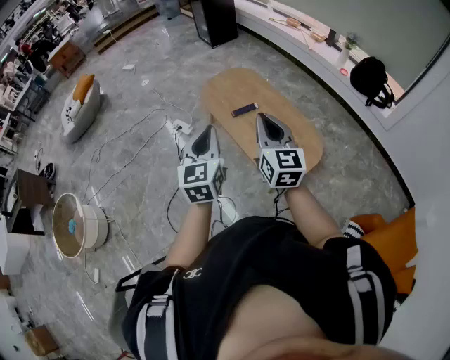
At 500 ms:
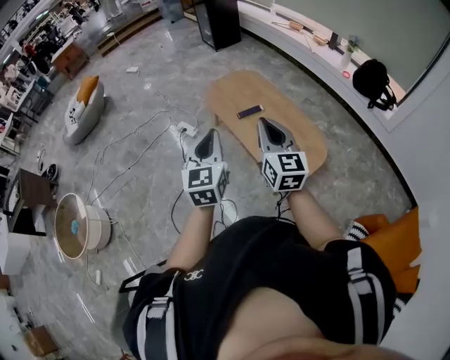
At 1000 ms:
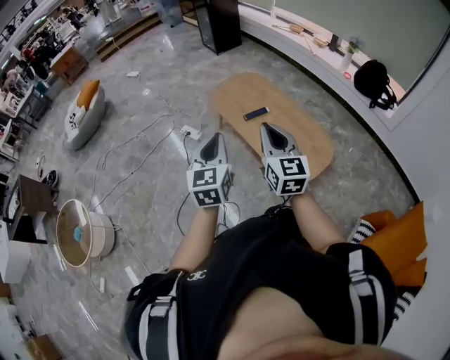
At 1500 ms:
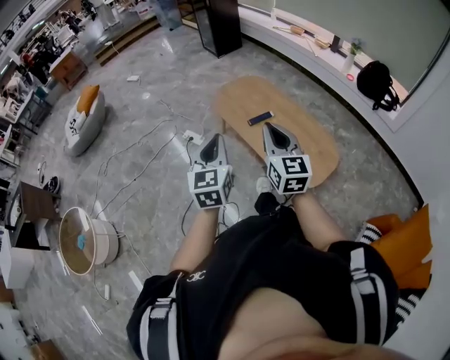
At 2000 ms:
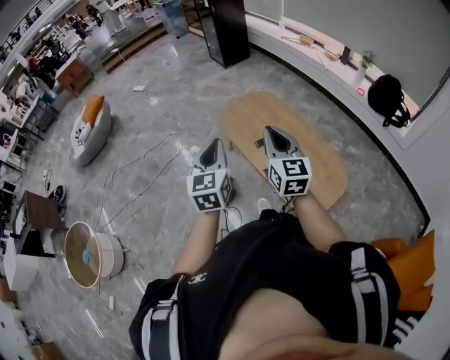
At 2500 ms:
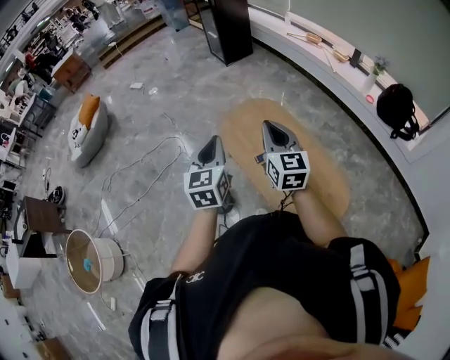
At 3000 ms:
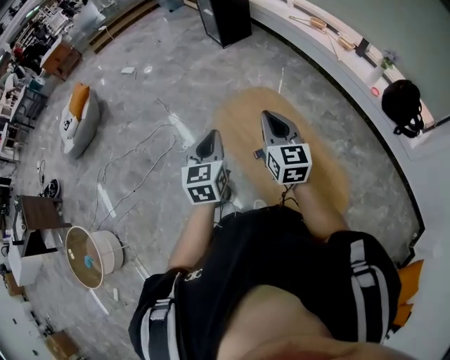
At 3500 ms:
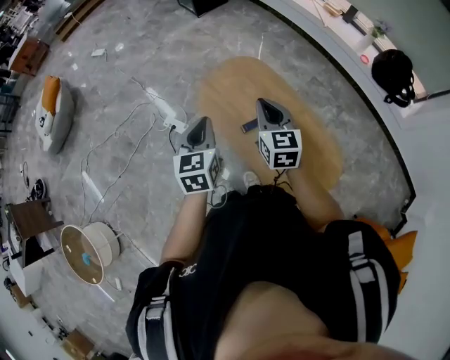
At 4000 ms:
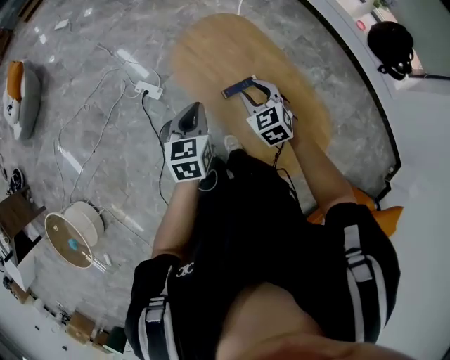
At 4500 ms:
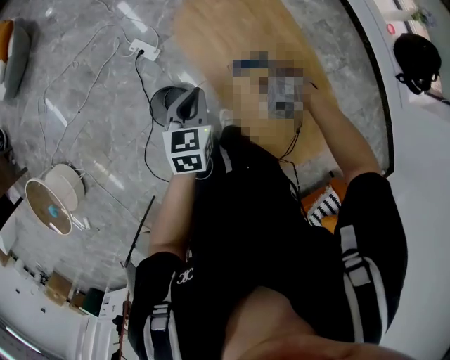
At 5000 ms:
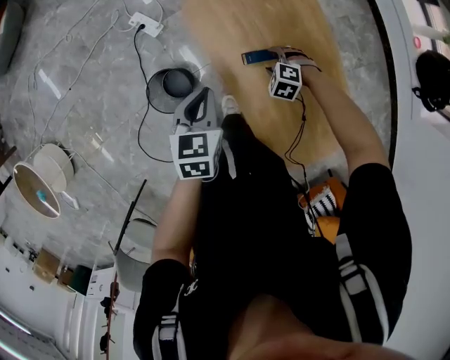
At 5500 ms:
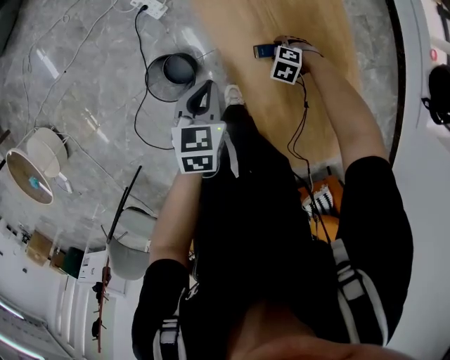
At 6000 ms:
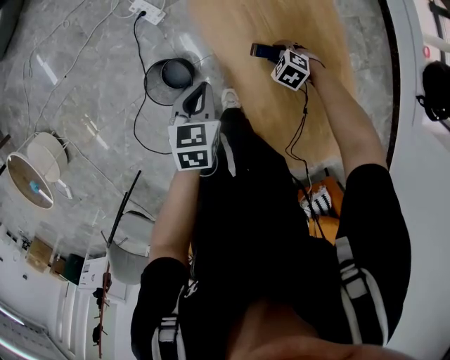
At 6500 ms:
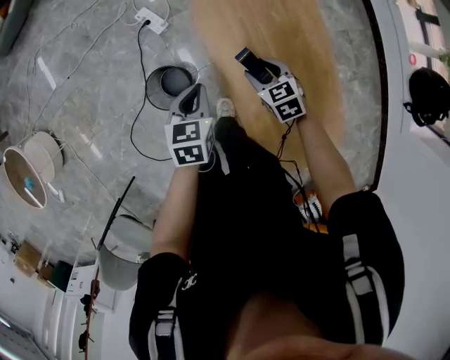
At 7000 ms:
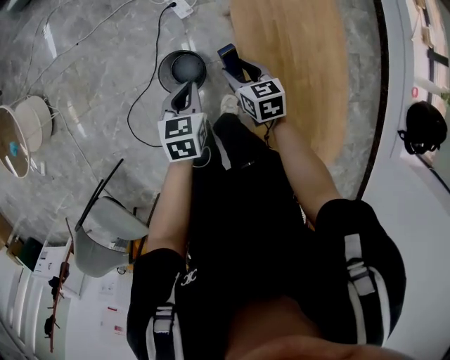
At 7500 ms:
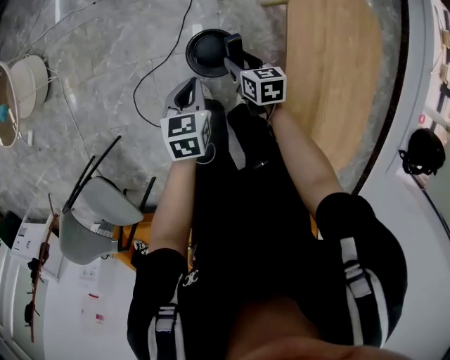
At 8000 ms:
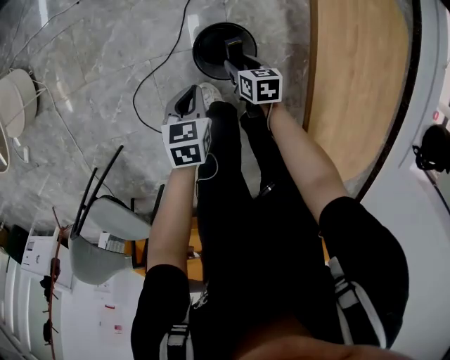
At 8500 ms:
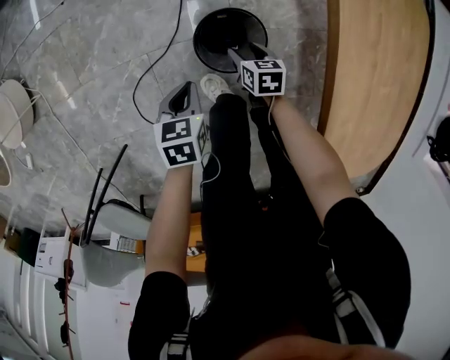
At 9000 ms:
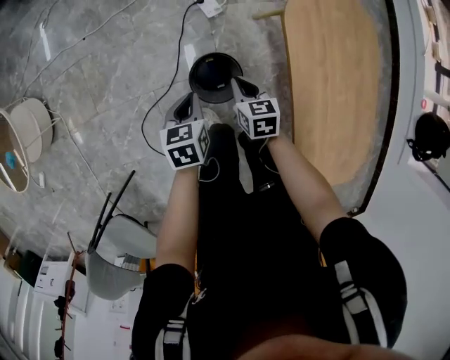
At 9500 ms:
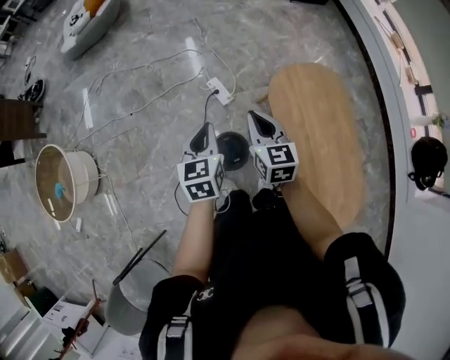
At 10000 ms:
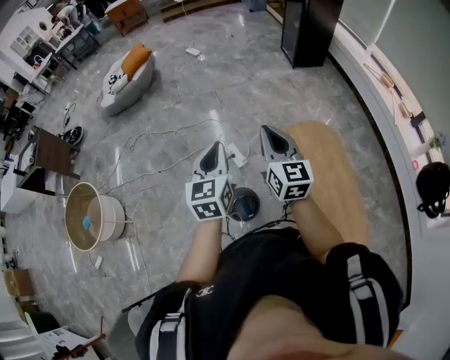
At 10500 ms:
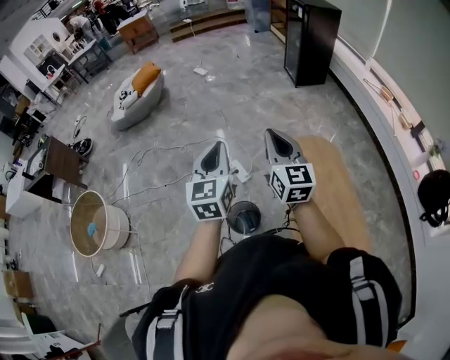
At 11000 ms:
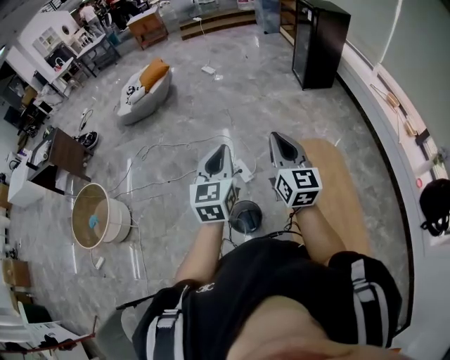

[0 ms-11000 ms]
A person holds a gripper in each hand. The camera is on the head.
0 ms to 2000 ms: Both grippers travel together forward and to the left, some 15 cm.
2000 ms to 3500 ms: The two grippers go some 25 cm forward.
3500 ms to 5500 ms: The right gripper shifts about 50 cm downward, tilts its fingers approximately 70 degrees downward, and opens up. The left gripper is displaced downward by roughly 30 cm, and turns by roughly 30 degrees.
5500 ms to 7500 ms: The left gripper shifts by about 30 cm, and rotates roughly 30 degrees. Meanwhile the right gripper ends up approximately 40 cm from where it was, and angles its fingers upward, by about 40 degrees.
7500 ms to 9000 ms: The right gripper travels downward and back again, approximately 25 cm each way, and closes its fingers, while the left gripper travels downward and back again, approximately 20 cm each way.
9000 ms to 11000 ms: The grippers both shift upward by approximately 60 cm. The right gripper tips its fingers upward by approximately 50 degrees. The left gripper points its fingers some 40 degrees further upward.

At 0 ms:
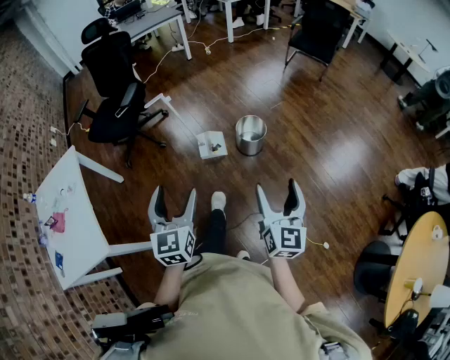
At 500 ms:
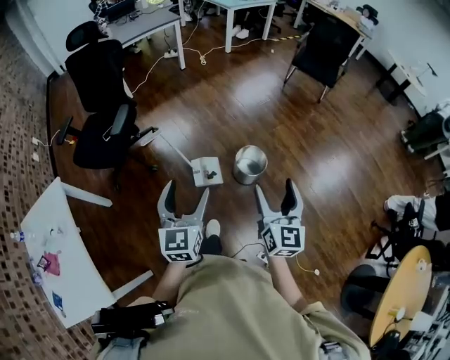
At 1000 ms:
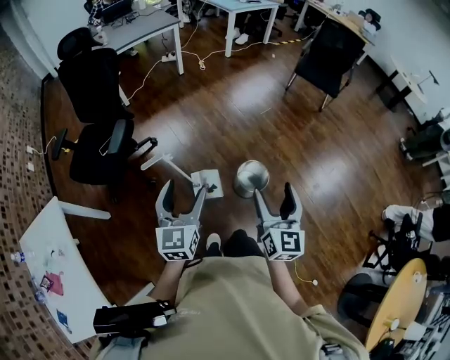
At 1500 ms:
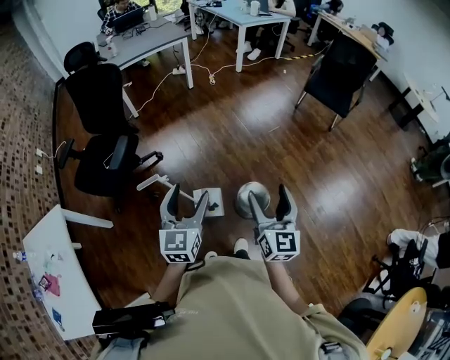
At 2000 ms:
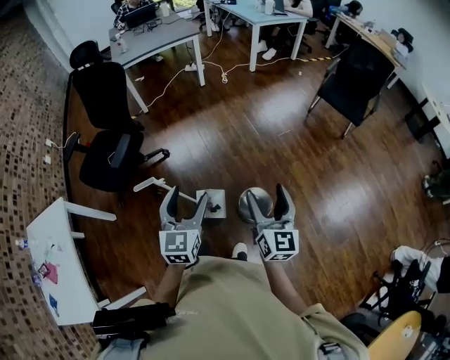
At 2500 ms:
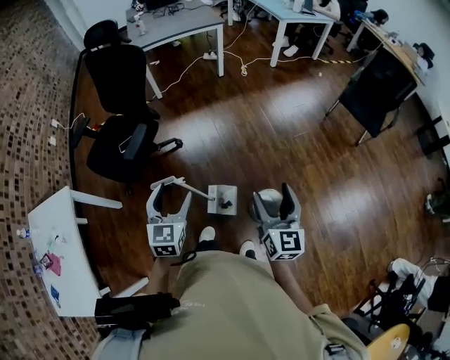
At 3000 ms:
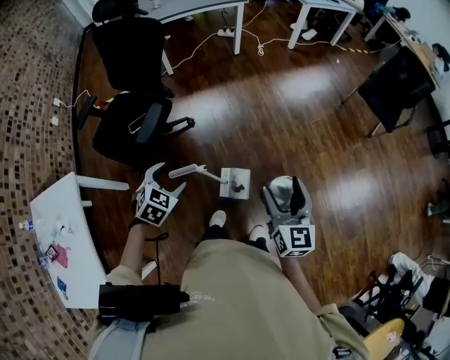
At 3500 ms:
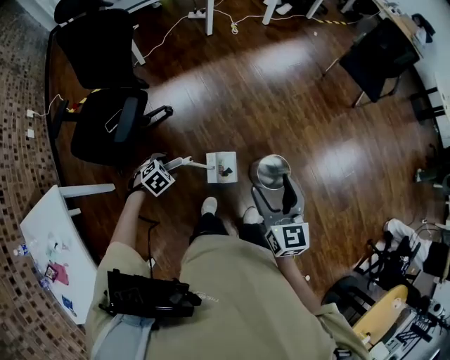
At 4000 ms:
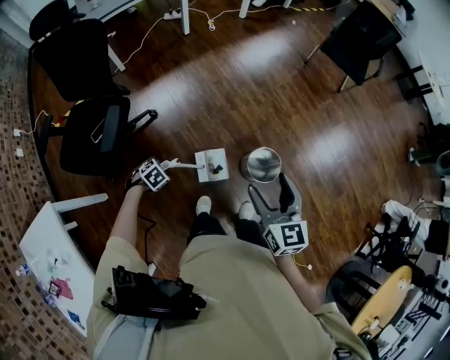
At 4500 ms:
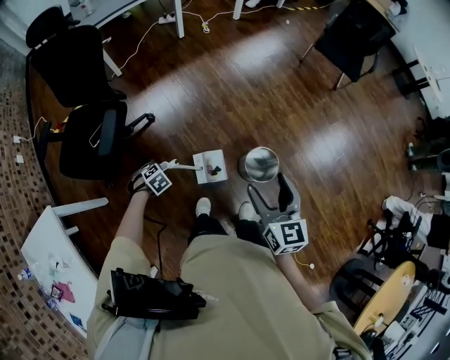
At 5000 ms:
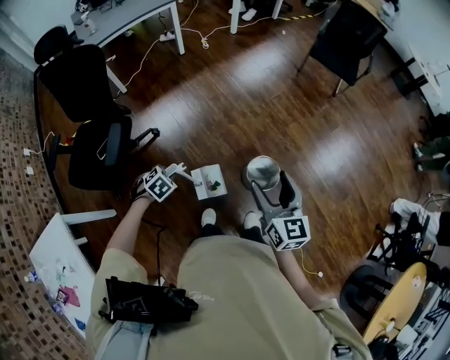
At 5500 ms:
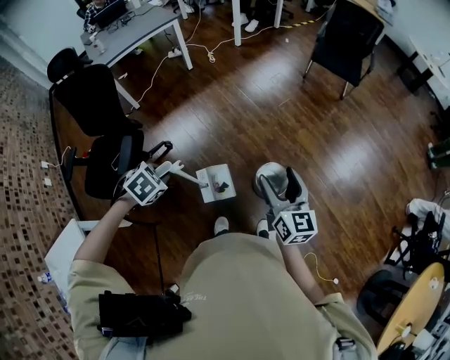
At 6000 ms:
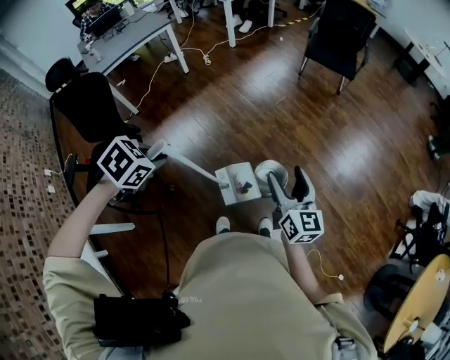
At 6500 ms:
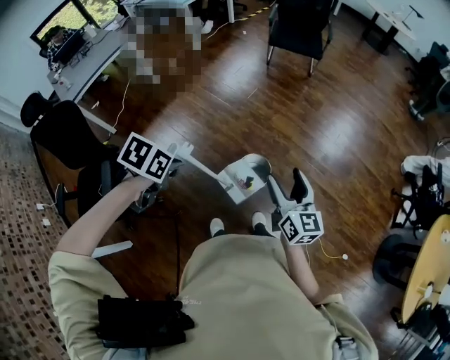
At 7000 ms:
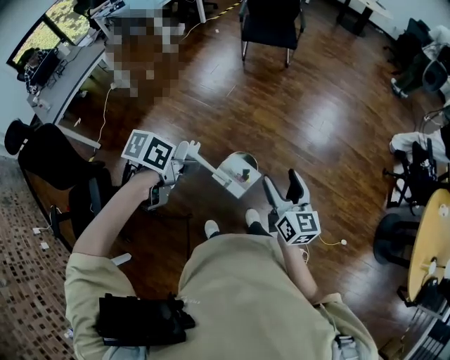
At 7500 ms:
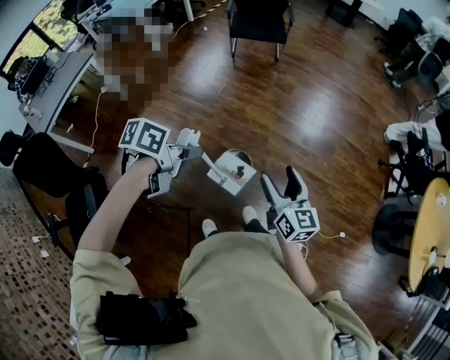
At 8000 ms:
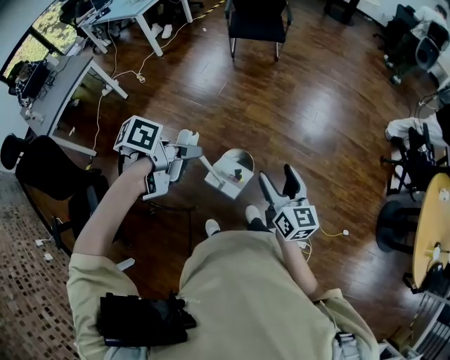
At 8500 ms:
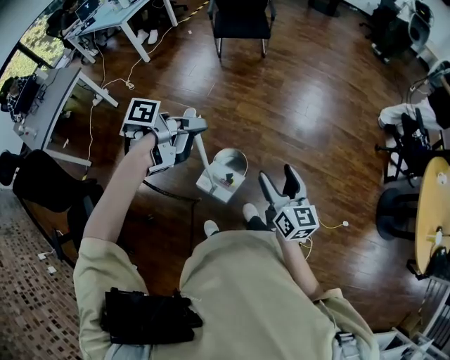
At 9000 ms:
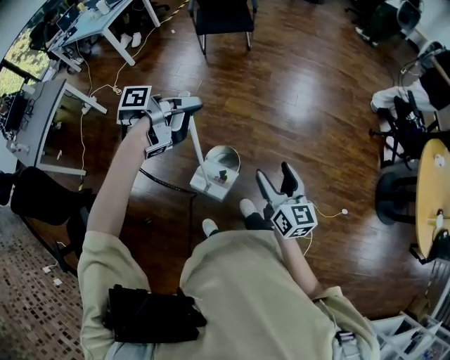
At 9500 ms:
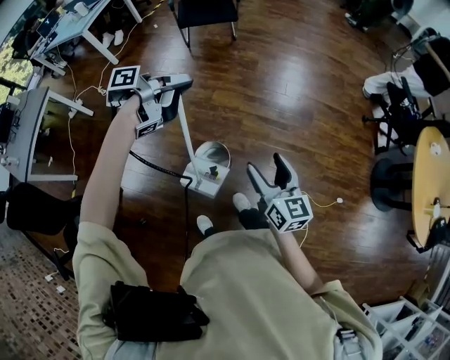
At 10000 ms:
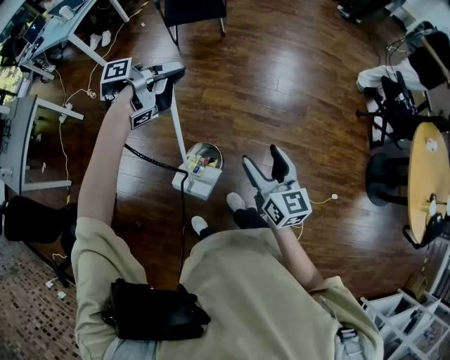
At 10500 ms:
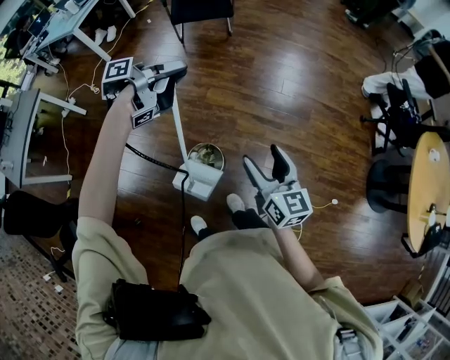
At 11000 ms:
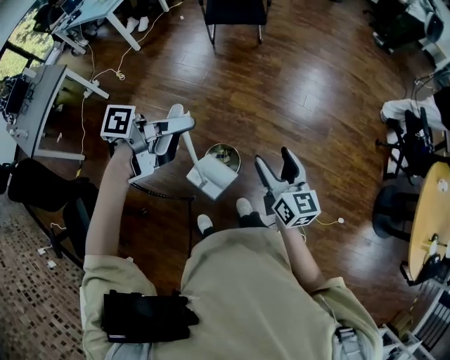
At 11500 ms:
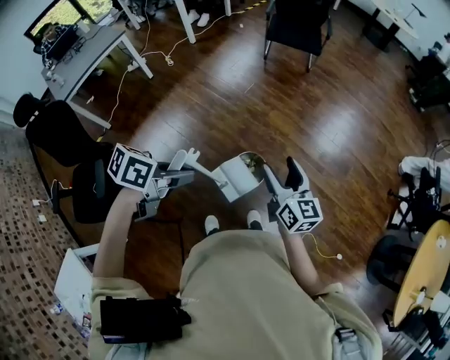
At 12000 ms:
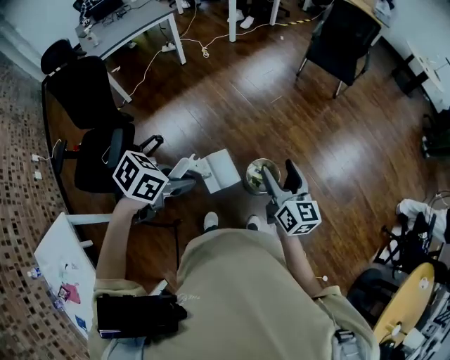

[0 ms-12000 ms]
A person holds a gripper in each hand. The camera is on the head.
0 ms to 2000 ms: The two grippers travel together, forward, approximately 50 cm.
2000 ms to 4000 ms: The left gripper goes approximately 40 cm downward, and points its fingers approximately 70 degrees further downward. The right gripper shifts by about 15 cm.
4000 ms to 6000 ms: The right gripper ends up approximately 15 cm from where it was, and changes its angle by about 20 degrees. Meanwhile the left gripper shifts approximately 40 cm upward, and closes up.
6000 ms to 8000 ms: The left gripper ends up roughly 25 cm from where it was, and angles its fingers upward, by some 40 degrees; the right gripper ends up approximately 15 cm from where it was.
8000 ms to 10000 ms: The left gripper travels forward by roughly 30 cm, while the right gripper goes about 10 cm forward and to the right.
10000 ms to 12000 ms: The left gripper travels backward by some 50 cm, and angles its fingers downward, by about 30 degrees. Meanwhile the right gripper moves to the left and backward, about 25 cm, and changes its angle by roughly 30 degrees.

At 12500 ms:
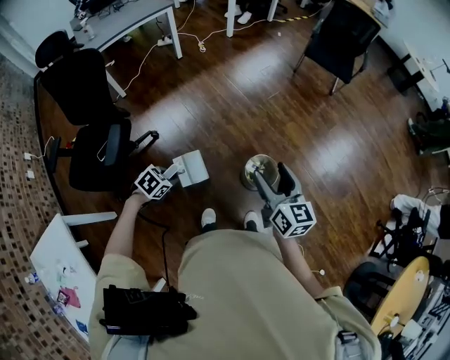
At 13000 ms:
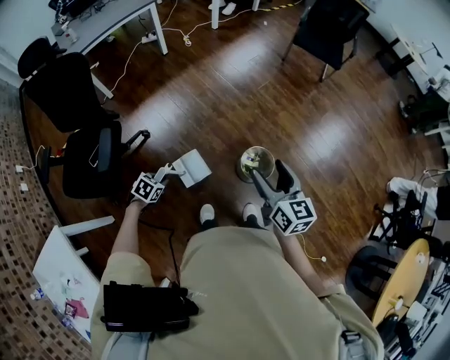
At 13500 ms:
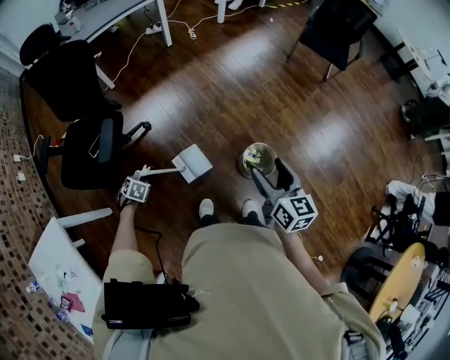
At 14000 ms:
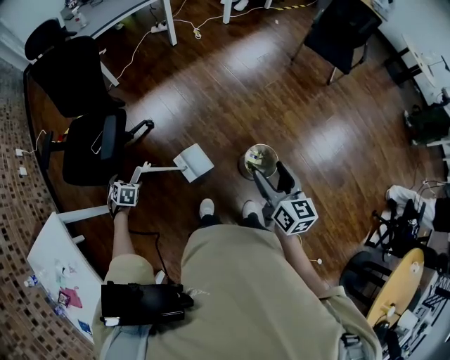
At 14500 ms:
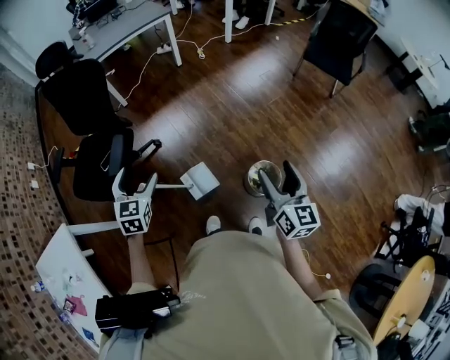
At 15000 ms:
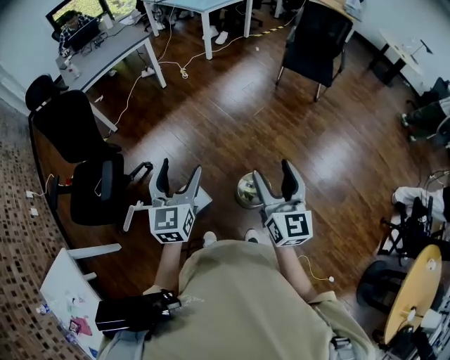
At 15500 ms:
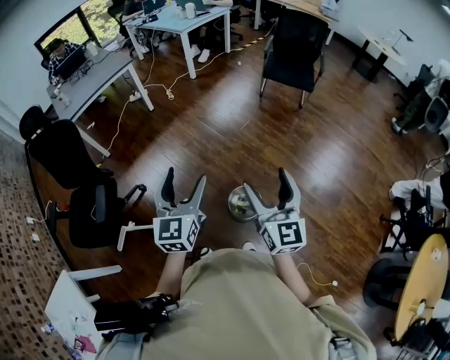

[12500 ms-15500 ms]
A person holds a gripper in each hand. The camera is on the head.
12500 ms to 14000 ms: The left gripper ends up approximately 25 cm from where it was, changes its angle by about 40 degrees, and opens up.
14000 ms to 15500 ms: The left gripper changes place by approximately 60 cm, and tips its fingers upward by roughly 60 degrees, while the right gripper travels upward by roughly 15 cm, and turns by about 30 degrees.
